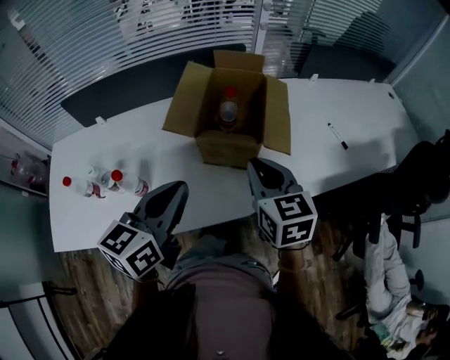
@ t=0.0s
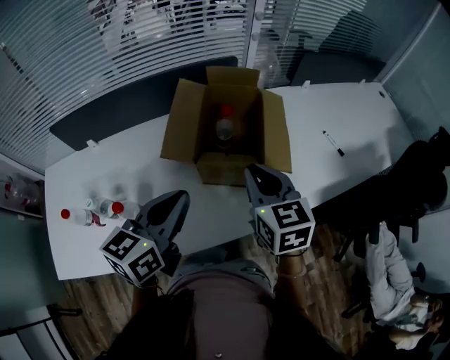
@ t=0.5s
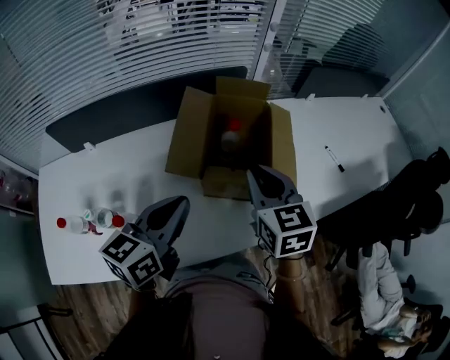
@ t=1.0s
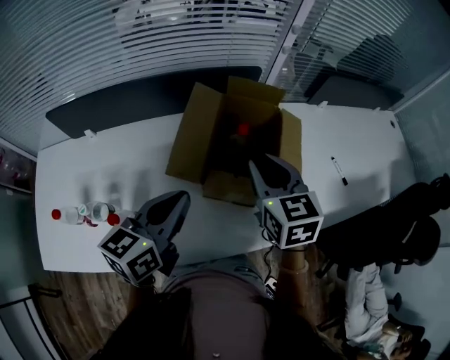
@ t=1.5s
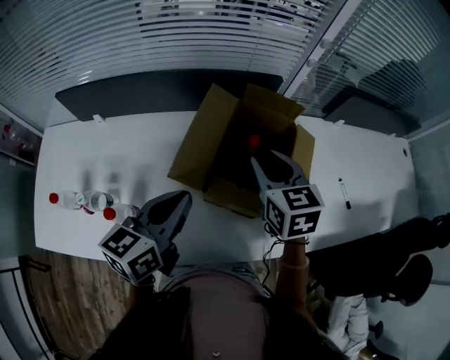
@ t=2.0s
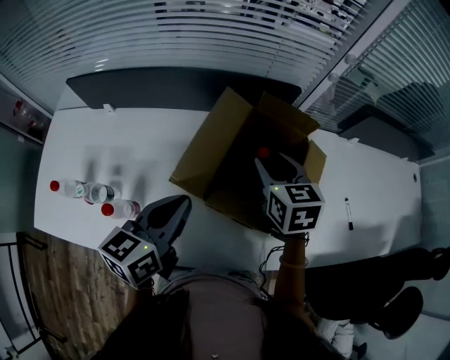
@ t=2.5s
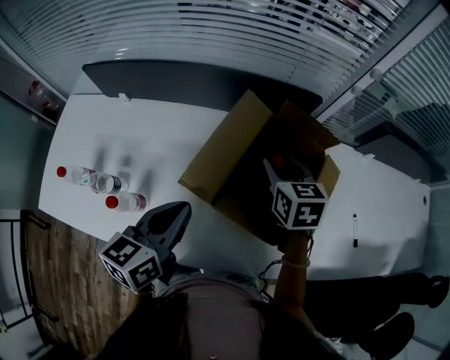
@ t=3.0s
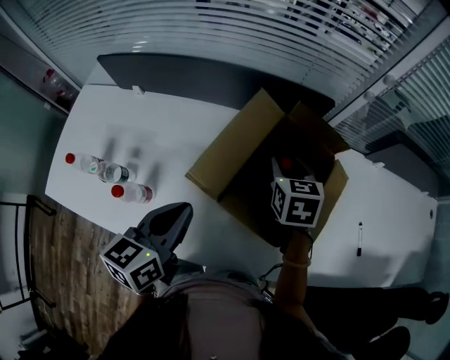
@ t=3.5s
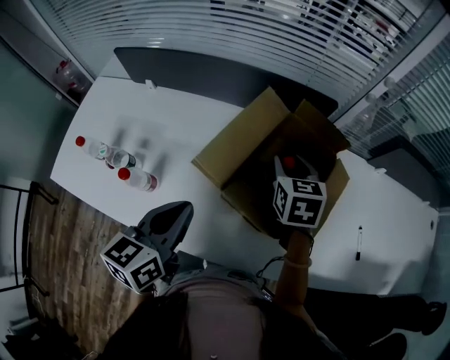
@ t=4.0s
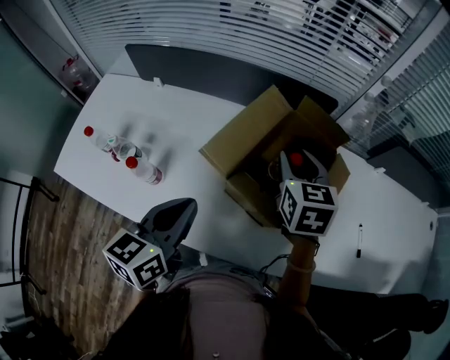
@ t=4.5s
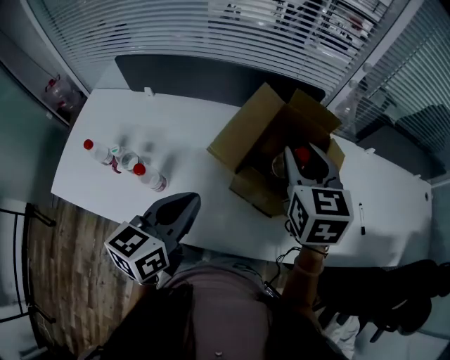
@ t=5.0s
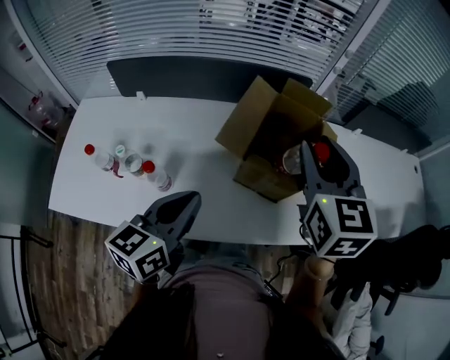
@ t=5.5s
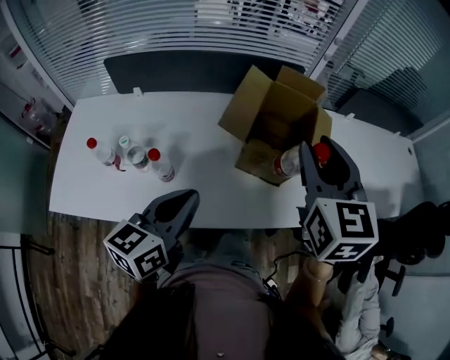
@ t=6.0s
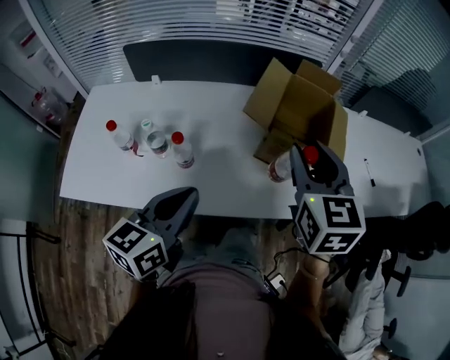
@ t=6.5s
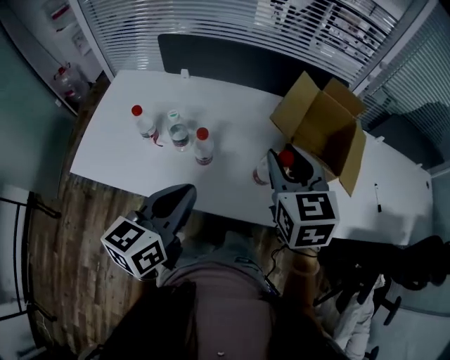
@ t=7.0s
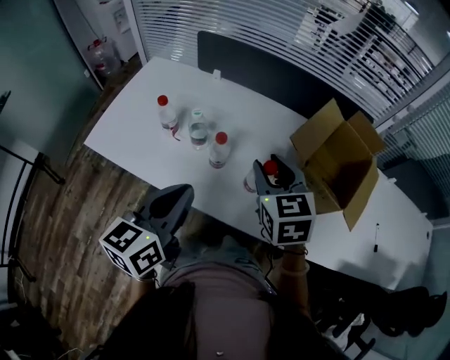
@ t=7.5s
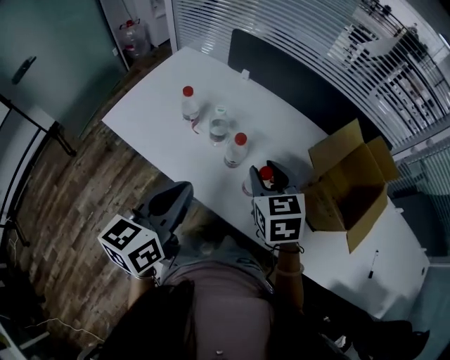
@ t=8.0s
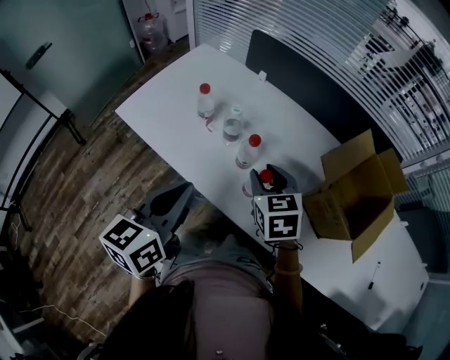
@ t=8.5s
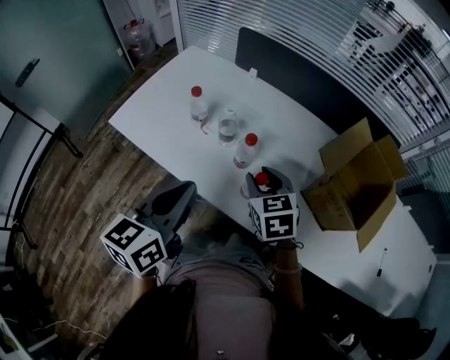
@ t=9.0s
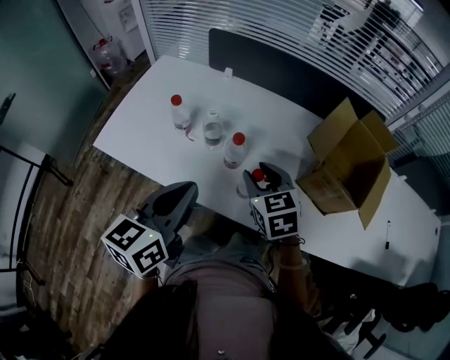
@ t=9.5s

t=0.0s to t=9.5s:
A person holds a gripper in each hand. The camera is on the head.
t=0.0s to t=2.0s: Both grippers travel together forward, some 15 cm. The right gripper opens its fingers.
t=2.0s to t=4.0s: The right gripper heads downward and forward, covering about 10 cm; the left gripper rotates some 20 degrees.
t=4.0s to t=5.5s: The right gripper is displaced upward and backward by roughly 25 cm, and swivels roughly 30 degrees, while the left gripper is displaced backward and to the left by about 10 cm.
t=5.5s to t=7.5s: The right gripper shifts by approximately 25 cm, and changes its angle by roughly 30 degrees. Meanwhile the left gripper moves roughly 15 cm, and rotates approximately 20 degrees.
t=7.5s to t=9.5s: The right gripper heads downward and to the left, covering approximately 10 cm.

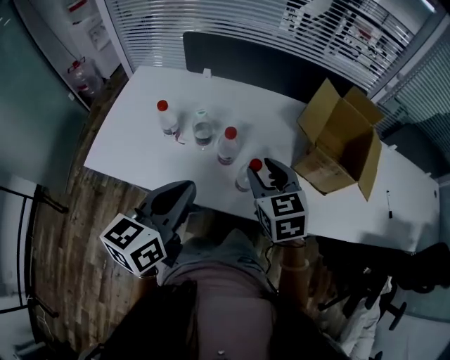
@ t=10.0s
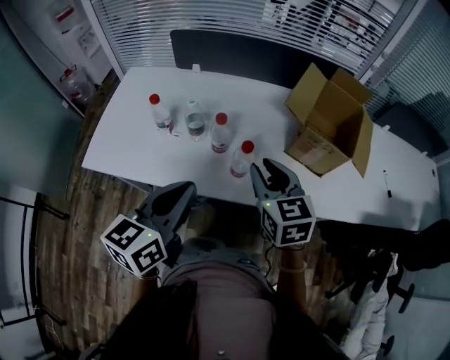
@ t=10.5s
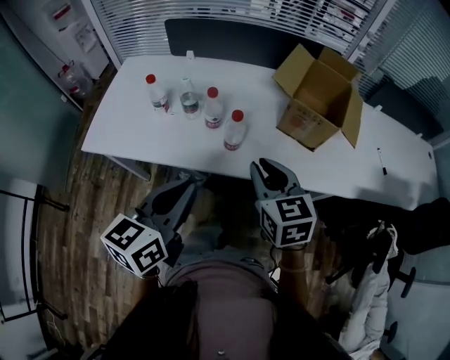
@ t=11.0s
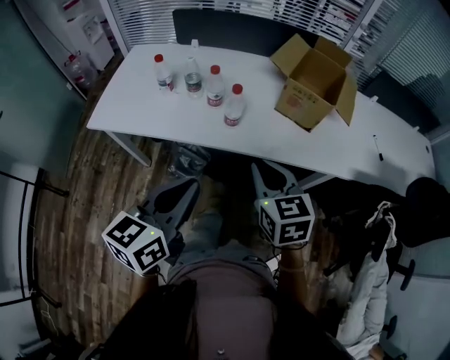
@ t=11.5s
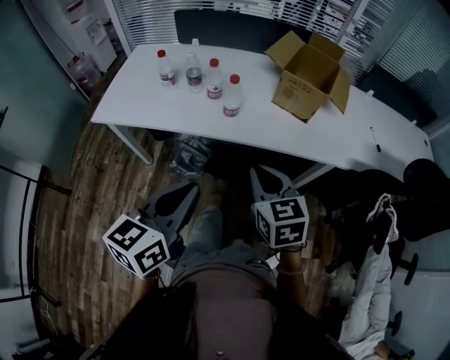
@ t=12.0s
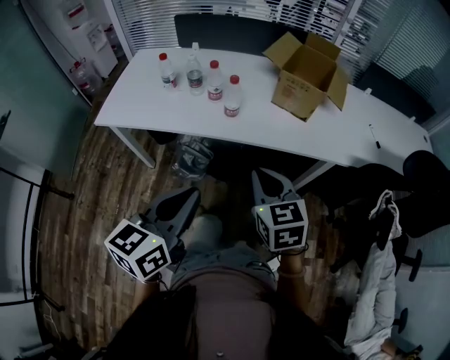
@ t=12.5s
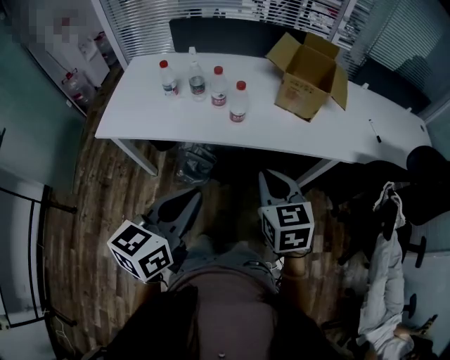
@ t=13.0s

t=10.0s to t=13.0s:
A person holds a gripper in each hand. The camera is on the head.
t=10.0s to t=11.5s: The two grippers go some 25 cm backward. The right gripper closes its fingers.
t=11.5s to t=13.0s: Both grippers travel together backward, approximately 5 cm.

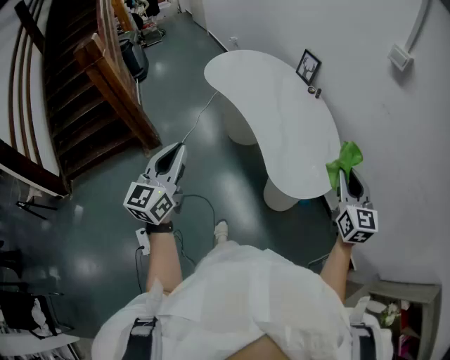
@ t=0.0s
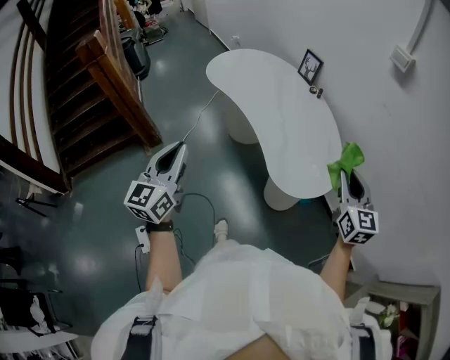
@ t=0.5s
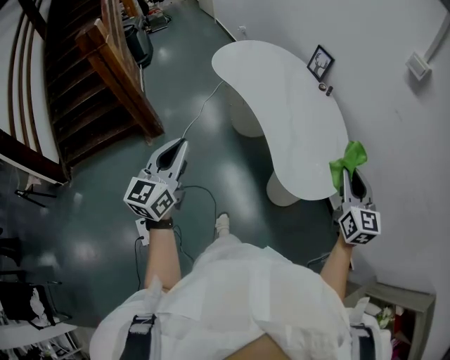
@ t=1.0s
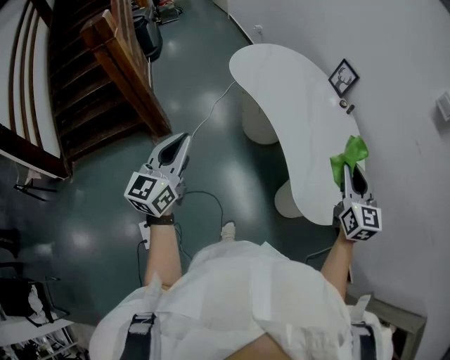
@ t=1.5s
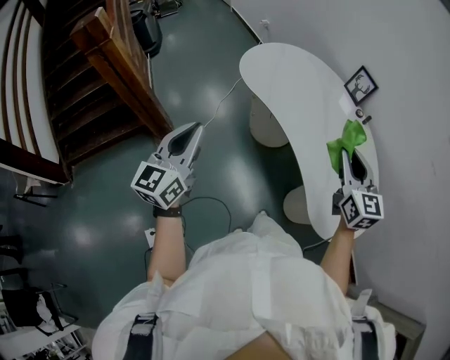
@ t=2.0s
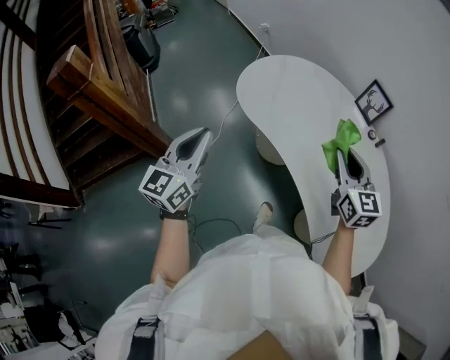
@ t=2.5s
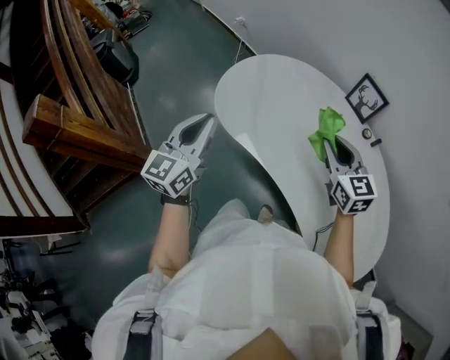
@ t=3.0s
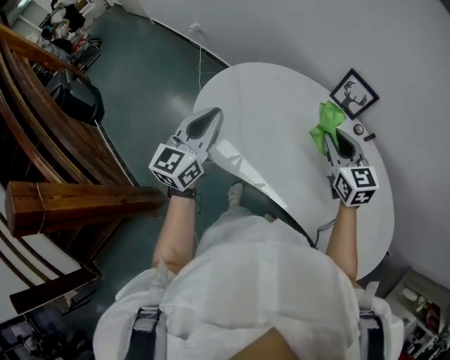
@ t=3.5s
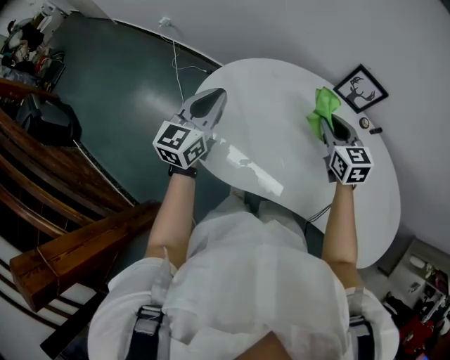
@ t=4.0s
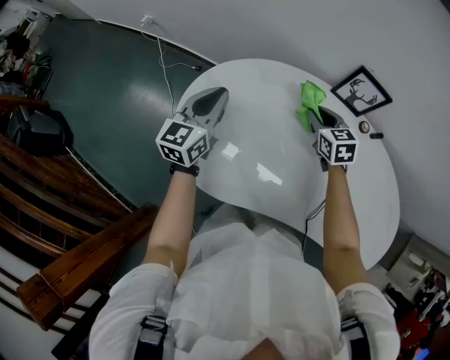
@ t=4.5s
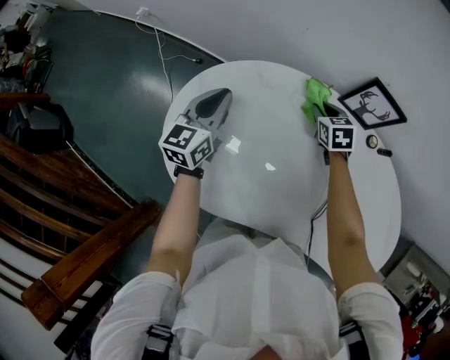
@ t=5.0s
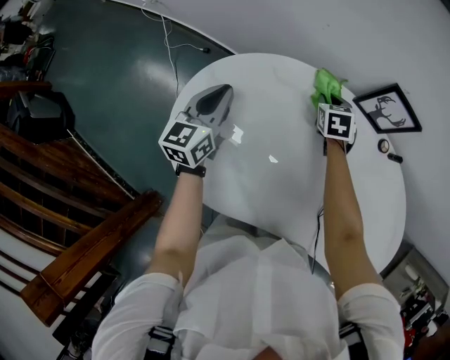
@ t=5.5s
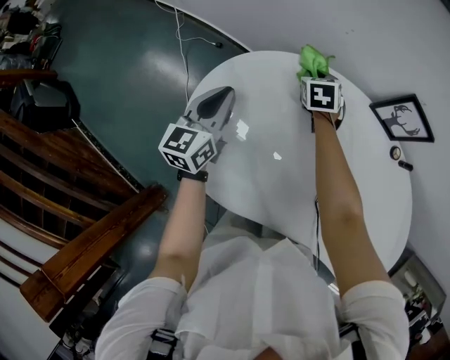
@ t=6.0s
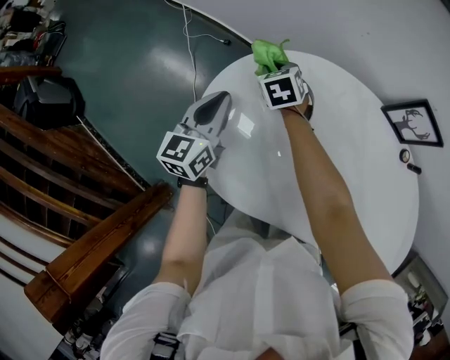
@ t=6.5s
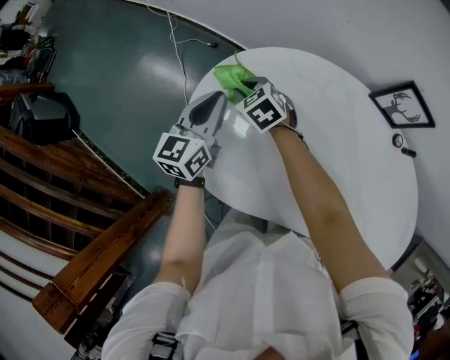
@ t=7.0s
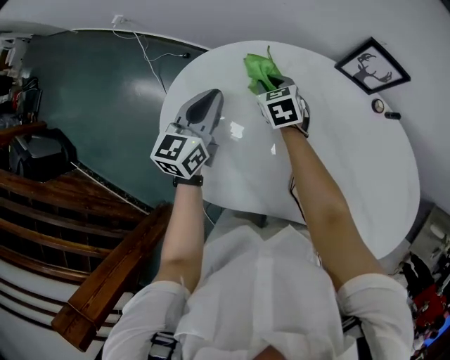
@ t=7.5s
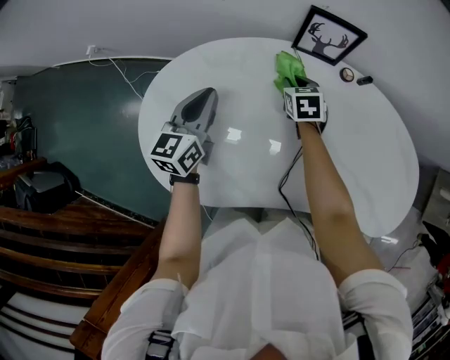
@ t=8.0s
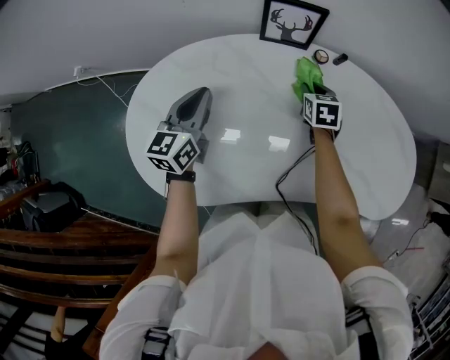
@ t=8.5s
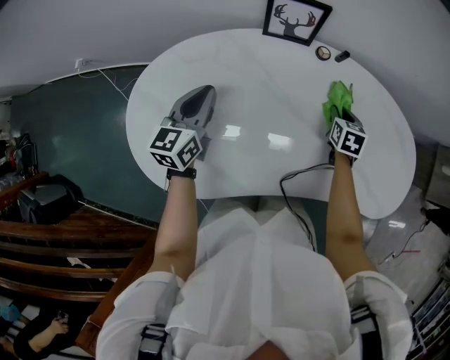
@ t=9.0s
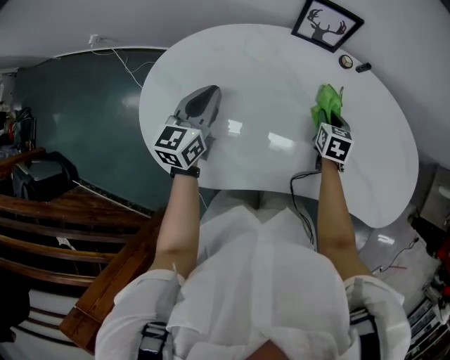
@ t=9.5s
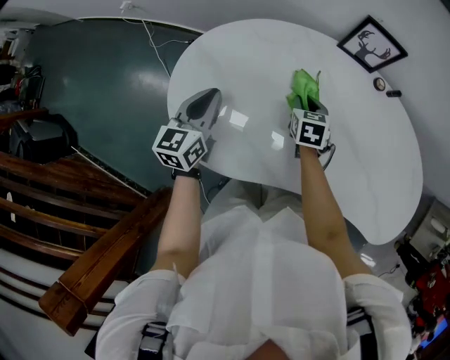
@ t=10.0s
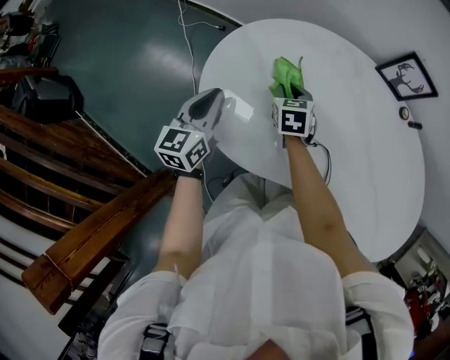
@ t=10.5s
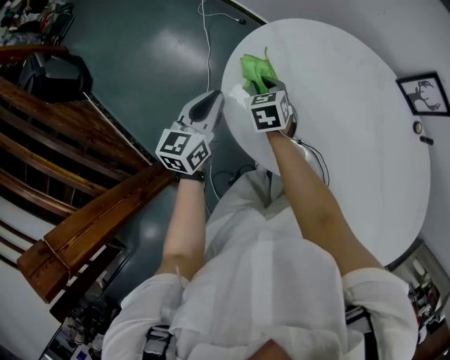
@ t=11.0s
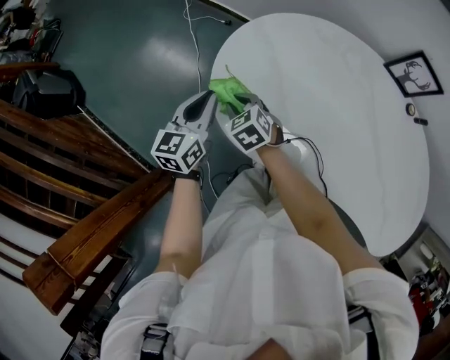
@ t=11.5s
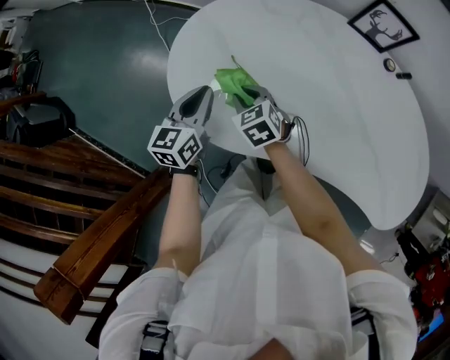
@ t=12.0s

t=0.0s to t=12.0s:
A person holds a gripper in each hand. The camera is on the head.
t=0.0s to t=2.0s: The right gripper heads to the left and forward, covering some 35 cm. Meanwhile the left gripper is displaced forward and to the left by roughly 30 cm.
t=2.0s to t=4.0s: The pair of grippers is taken some 60 cm. The left gripper rotates about 40 degrees. Meanwhile the right gripper swivels about 30 degrees.
t=4.0s to t=6.0s: The left gripper shifts approximately 20 cm downward and forward, while the right gripper goes approximately 35 cm forward, downward and to the left, and swivels approximately 30 degrees.
t=6.0s to t=8.0s: The left gripper ends up approximately 15 cm from where it was, while the right gripper changes place by roughly 25 cm.
t=8.0s to t=10.0s: The right gripper travels backward by roughly 15 cm, and goes to the right and returns, roughly 25 cm each way, while the left gripper moves backward and to the left, approximately 15 cm.
t=10.0s to t=12.0s: The right gripper rotates approximately 40 degrees.

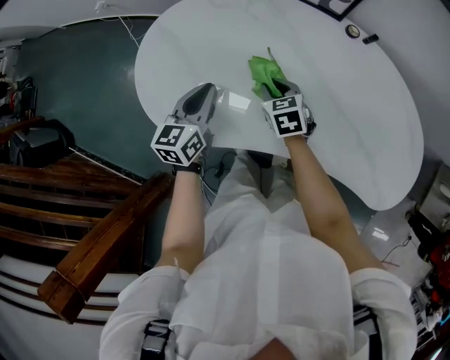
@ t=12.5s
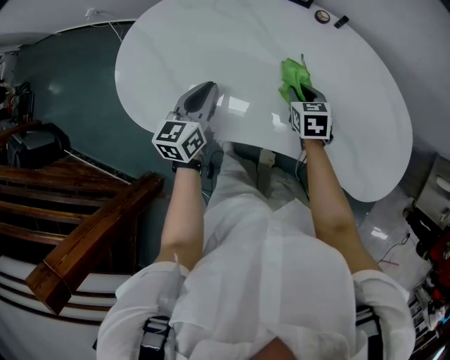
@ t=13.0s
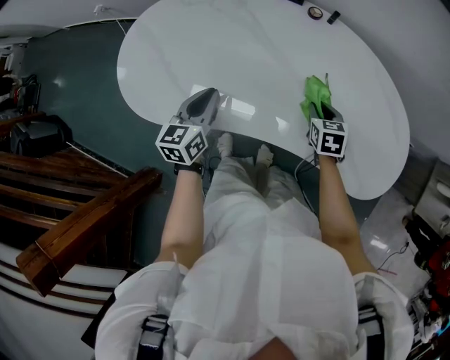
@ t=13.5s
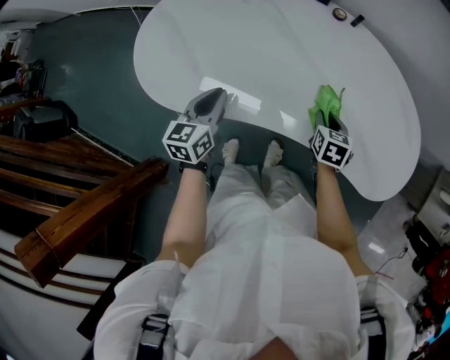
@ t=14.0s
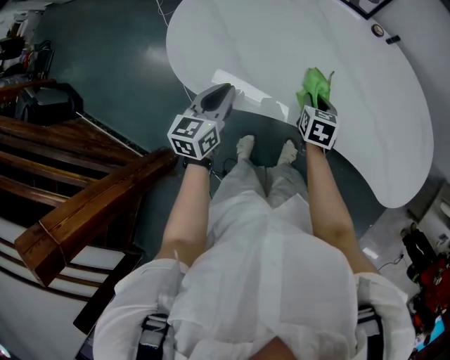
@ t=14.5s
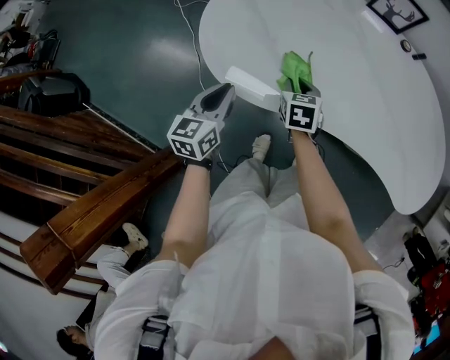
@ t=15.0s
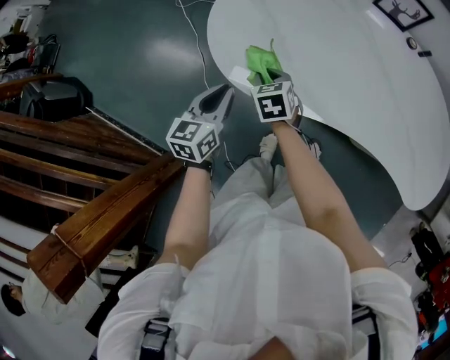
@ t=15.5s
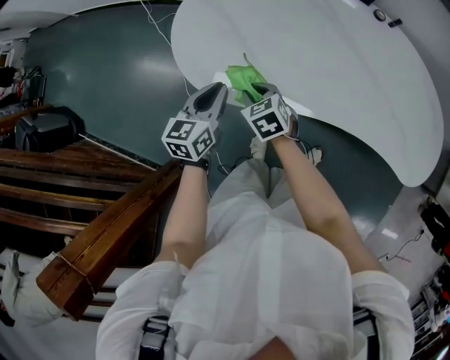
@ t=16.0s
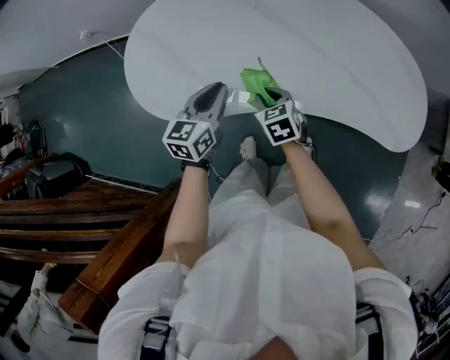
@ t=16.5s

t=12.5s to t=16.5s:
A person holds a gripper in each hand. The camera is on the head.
t=12.5s to t=14.5s: Both grippers travel together backward, some 10 cm. The left gripper travels to the right and back again, roughly 15 cm each way; the right gripper travels to the right and back again, approximately 30 cm each way, and turns by roughly 20 degrees.
t=14.5s to t=16.5s: The right gripper goes some 5 cm backward, and moves approximately 30 cm to the left and comes back, while the left gripper is displaced to the right by roughly 10 cm.
